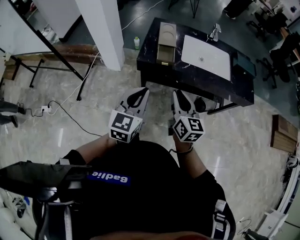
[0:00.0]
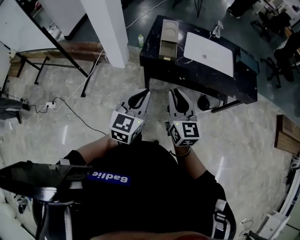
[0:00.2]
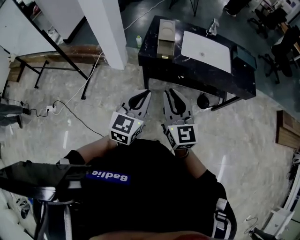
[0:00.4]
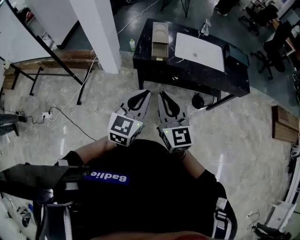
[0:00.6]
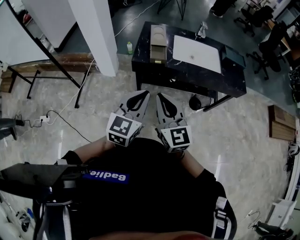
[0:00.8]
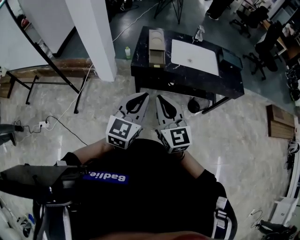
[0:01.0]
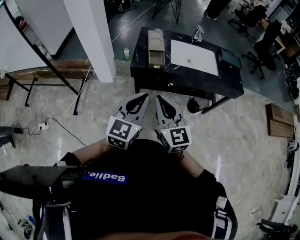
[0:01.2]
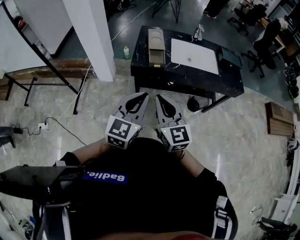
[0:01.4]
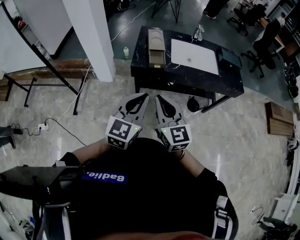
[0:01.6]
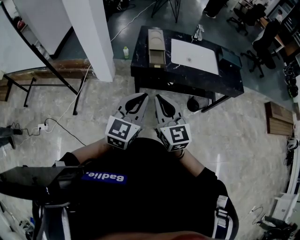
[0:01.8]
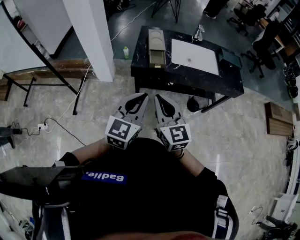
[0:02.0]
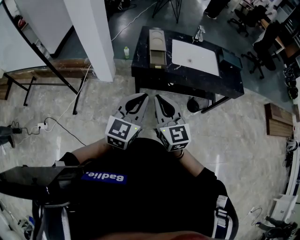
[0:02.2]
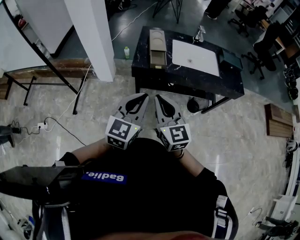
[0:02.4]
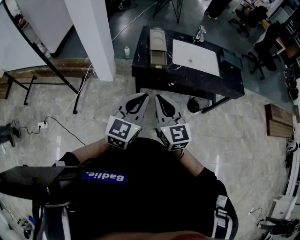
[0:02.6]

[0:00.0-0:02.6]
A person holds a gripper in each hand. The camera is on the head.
0:00.0 to 0:01.2: The right gripper shifts about 15 cm backward, upward and to the left. The left gripper travels backward and upward by roughly 10 cm.
0:01.2 to 0:02.6: The grippers make only small movements.

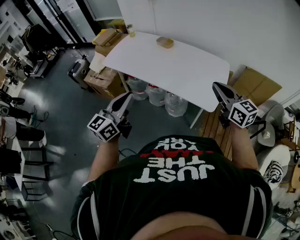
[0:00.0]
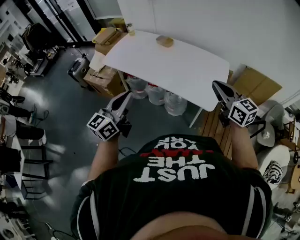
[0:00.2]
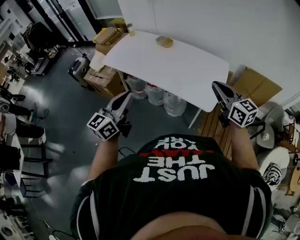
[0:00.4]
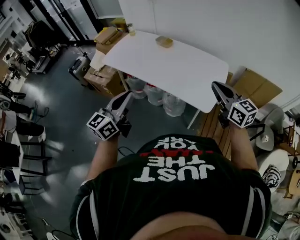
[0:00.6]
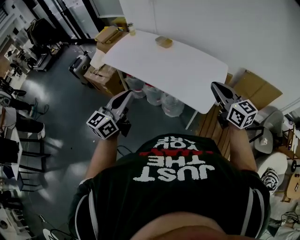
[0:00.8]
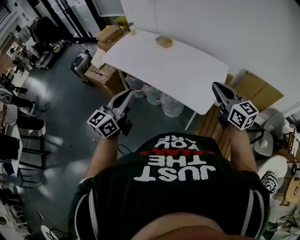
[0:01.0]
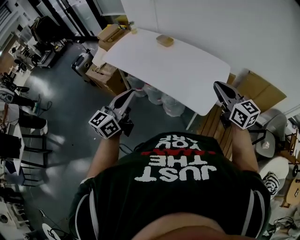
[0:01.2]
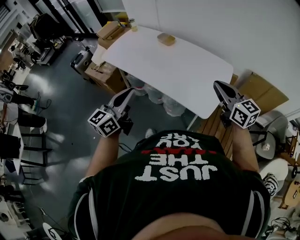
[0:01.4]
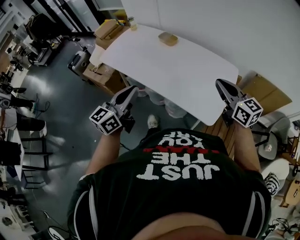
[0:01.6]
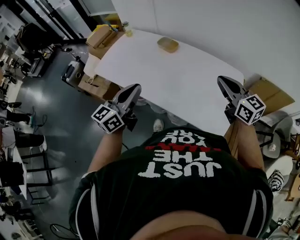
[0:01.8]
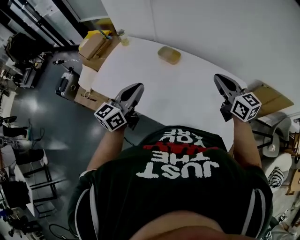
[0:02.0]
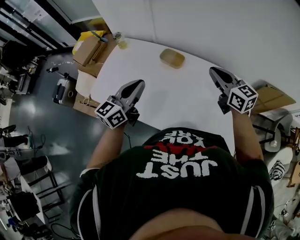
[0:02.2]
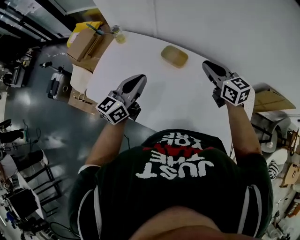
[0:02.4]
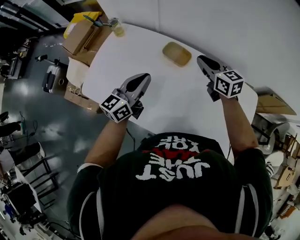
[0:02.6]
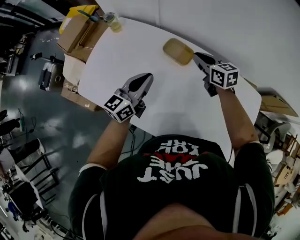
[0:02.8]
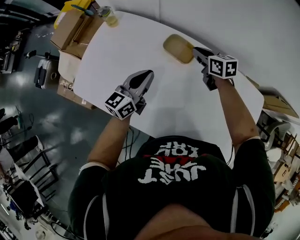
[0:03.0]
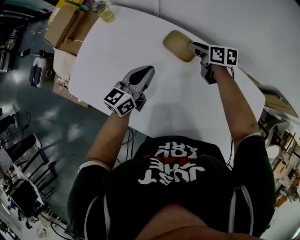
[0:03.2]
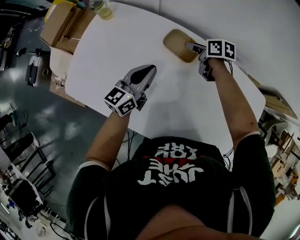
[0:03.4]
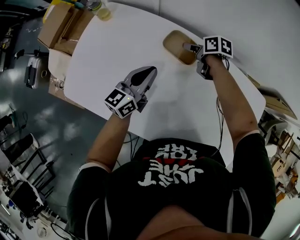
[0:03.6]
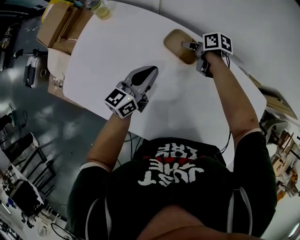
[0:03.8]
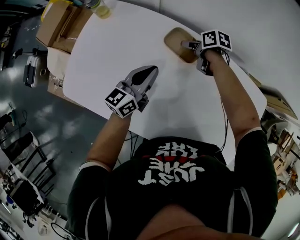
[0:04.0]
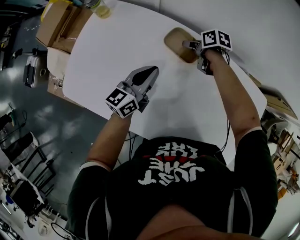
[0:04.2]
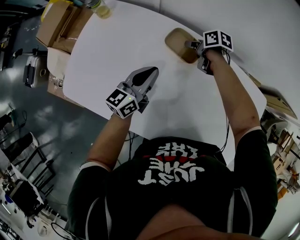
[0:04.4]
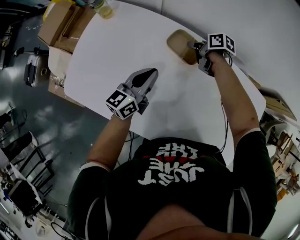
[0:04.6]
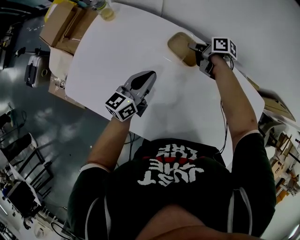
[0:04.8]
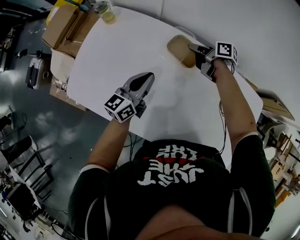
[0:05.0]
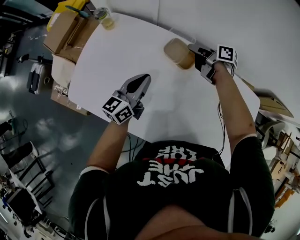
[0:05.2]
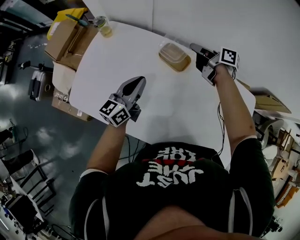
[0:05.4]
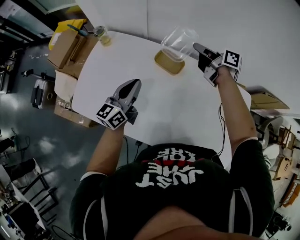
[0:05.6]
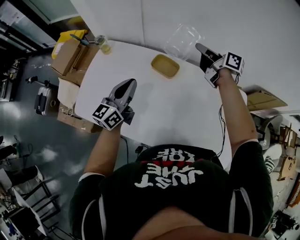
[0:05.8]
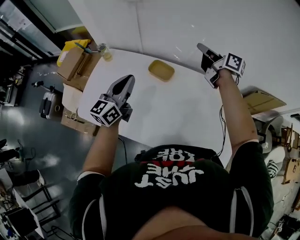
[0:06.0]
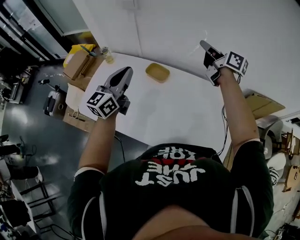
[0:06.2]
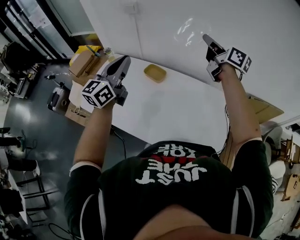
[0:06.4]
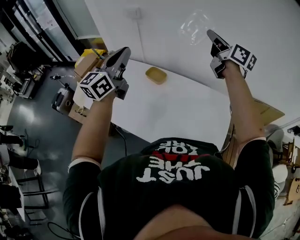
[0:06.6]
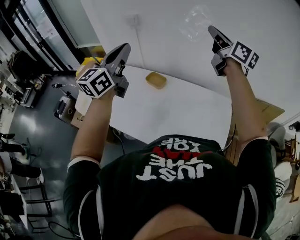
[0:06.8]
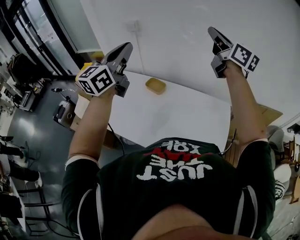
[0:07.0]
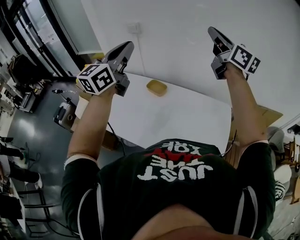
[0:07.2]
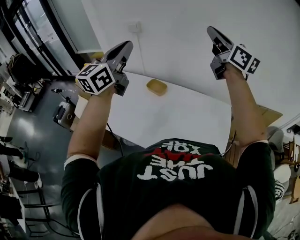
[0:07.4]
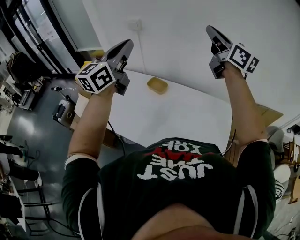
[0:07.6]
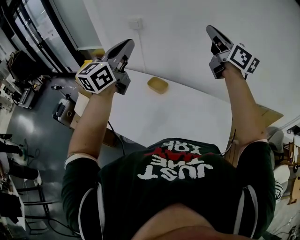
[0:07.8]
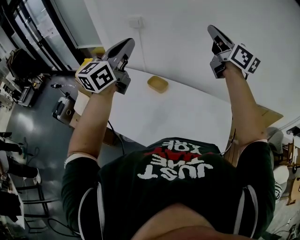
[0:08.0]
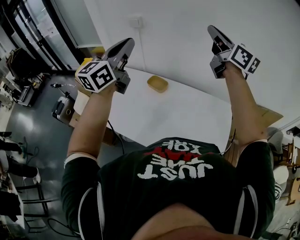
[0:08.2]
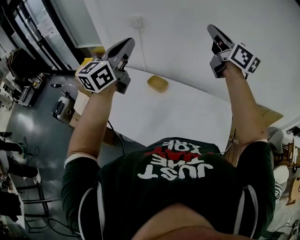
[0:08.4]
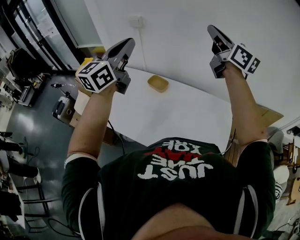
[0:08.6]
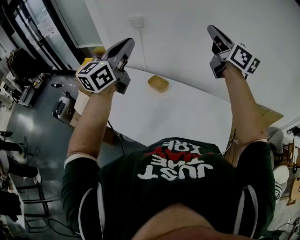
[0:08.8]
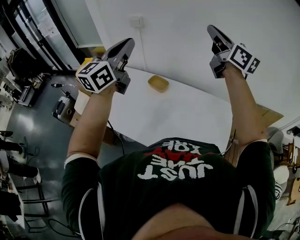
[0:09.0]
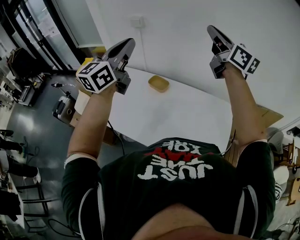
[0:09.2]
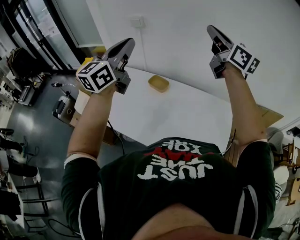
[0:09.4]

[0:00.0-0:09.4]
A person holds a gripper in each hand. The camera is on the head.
0:00.0 to 0:01.6: The right gripper travels forward by approximately 15 cm; the left gripper moves forward and to the right, roughly 15 cm.
0:01.6 to 0:03.2: The pair of grippers is taken forward, approximately 60 cm. The grippers both shift downward by some 30 cm. The right gripper points its fingers approximately 30 degrees further downward, and opens up.
0:03.2 to 0:04.8: The right gripper changes its angle by approximately 30 degrees, and closes.
0:04.8 to 0:06.2: The two grippers go approximately 35 cm upward. The right gripper angles its fingers upward, by approximately 40 degrees. The left gripper turns by approximately 20 degrees.
0:06.2 to 0:07.8: The right gripper travels upward and backward by about 25 cm, and rotates roughly 30 degrees, while the left gripper goes about 20 cm upward.
0:07.8 to 0:09.4: Both grippers stay put.

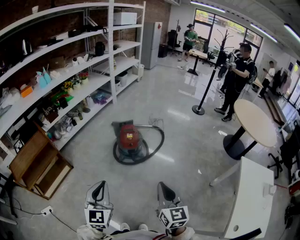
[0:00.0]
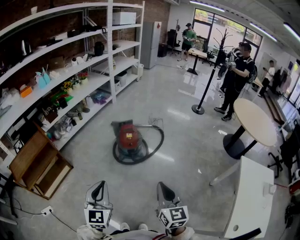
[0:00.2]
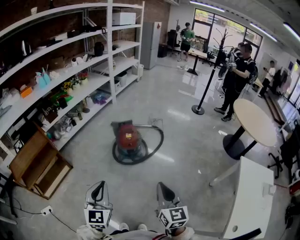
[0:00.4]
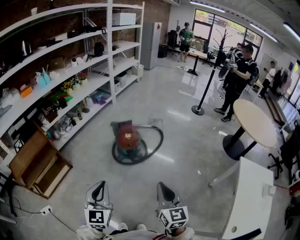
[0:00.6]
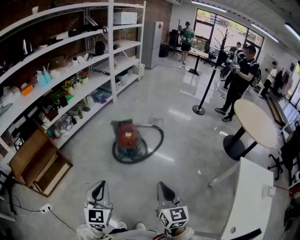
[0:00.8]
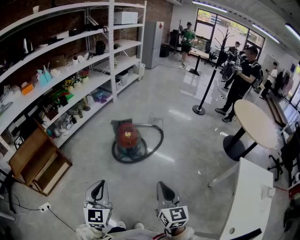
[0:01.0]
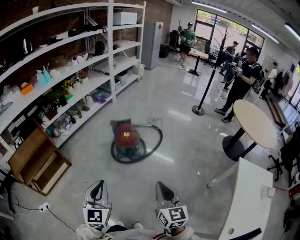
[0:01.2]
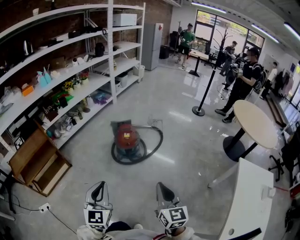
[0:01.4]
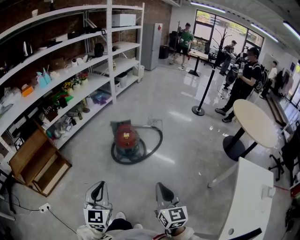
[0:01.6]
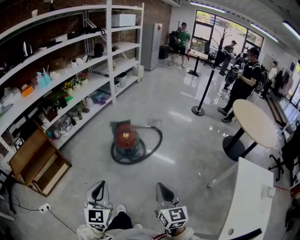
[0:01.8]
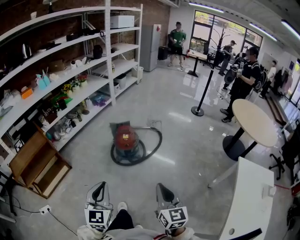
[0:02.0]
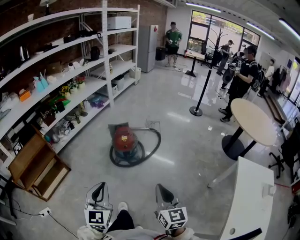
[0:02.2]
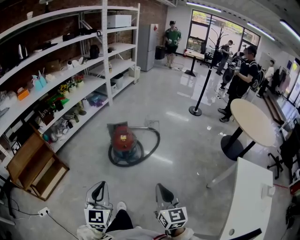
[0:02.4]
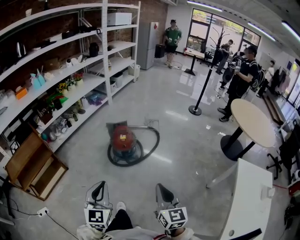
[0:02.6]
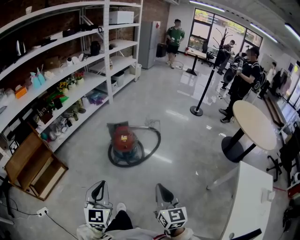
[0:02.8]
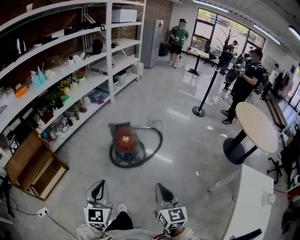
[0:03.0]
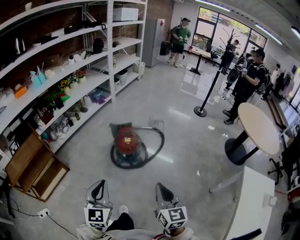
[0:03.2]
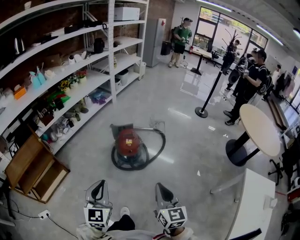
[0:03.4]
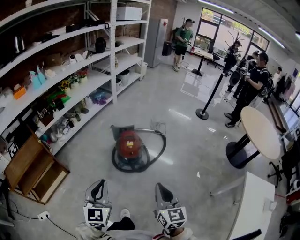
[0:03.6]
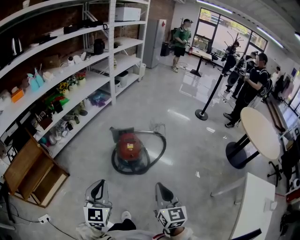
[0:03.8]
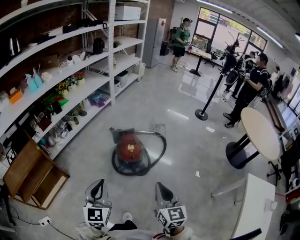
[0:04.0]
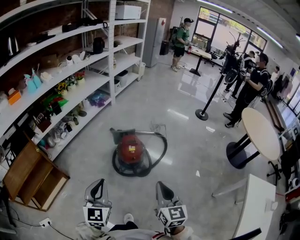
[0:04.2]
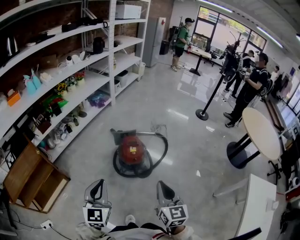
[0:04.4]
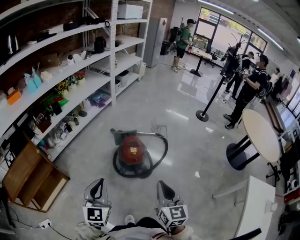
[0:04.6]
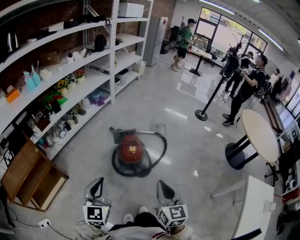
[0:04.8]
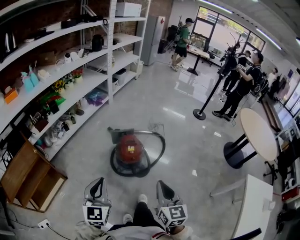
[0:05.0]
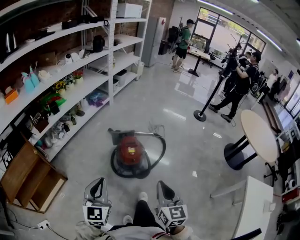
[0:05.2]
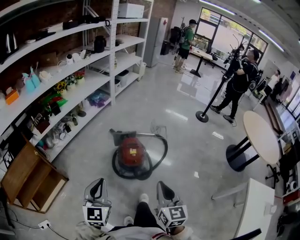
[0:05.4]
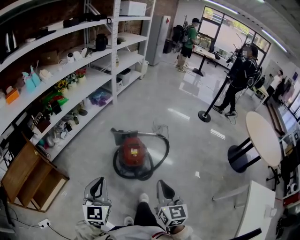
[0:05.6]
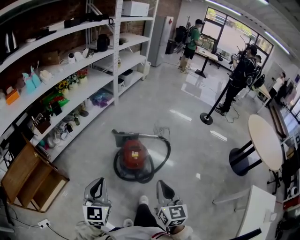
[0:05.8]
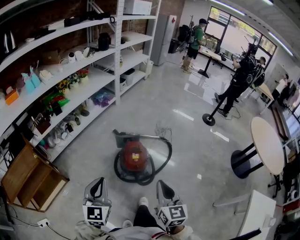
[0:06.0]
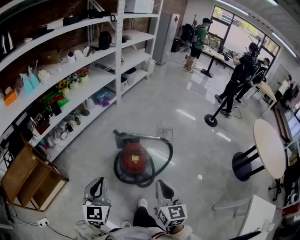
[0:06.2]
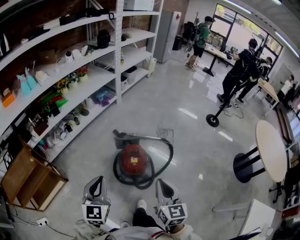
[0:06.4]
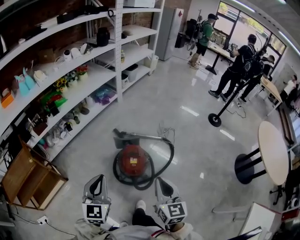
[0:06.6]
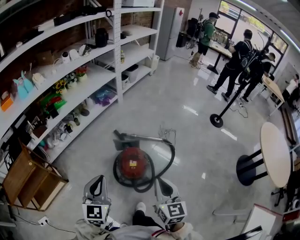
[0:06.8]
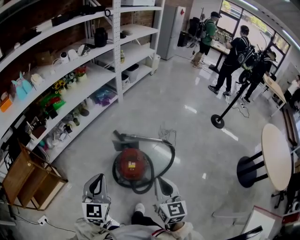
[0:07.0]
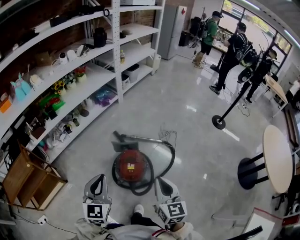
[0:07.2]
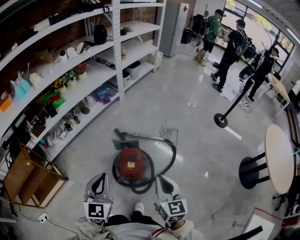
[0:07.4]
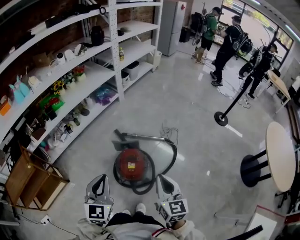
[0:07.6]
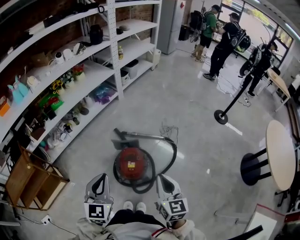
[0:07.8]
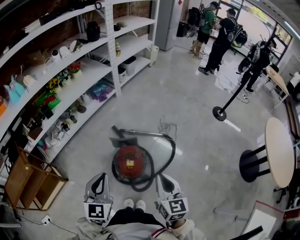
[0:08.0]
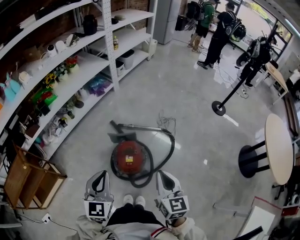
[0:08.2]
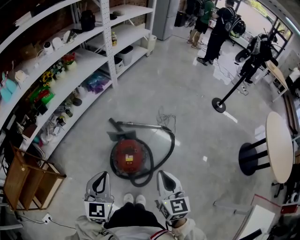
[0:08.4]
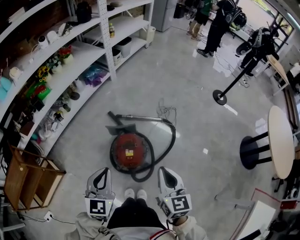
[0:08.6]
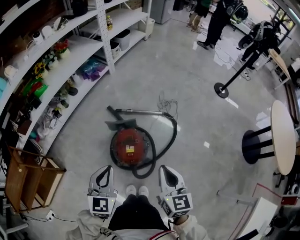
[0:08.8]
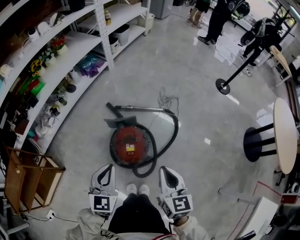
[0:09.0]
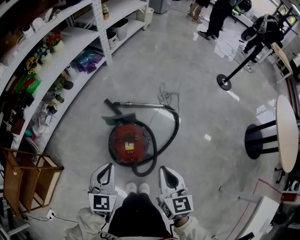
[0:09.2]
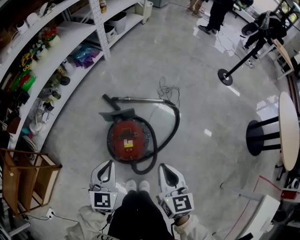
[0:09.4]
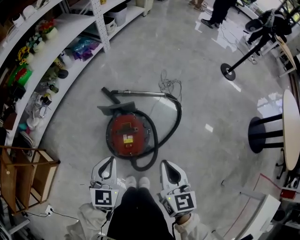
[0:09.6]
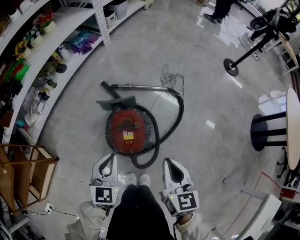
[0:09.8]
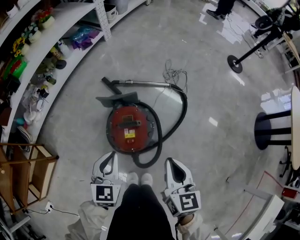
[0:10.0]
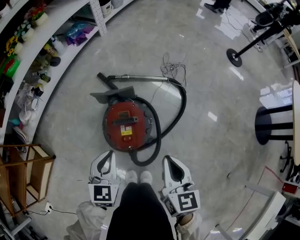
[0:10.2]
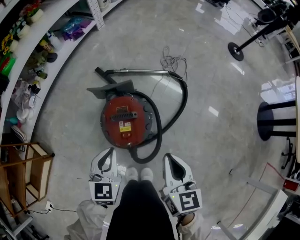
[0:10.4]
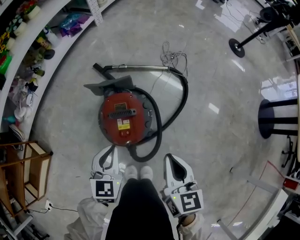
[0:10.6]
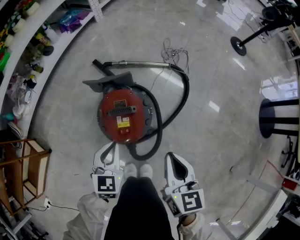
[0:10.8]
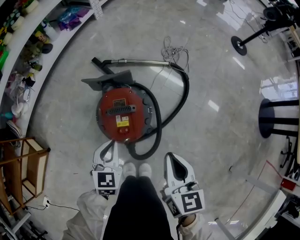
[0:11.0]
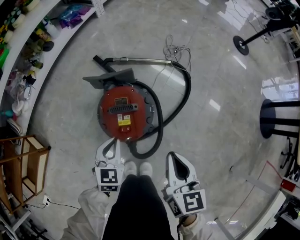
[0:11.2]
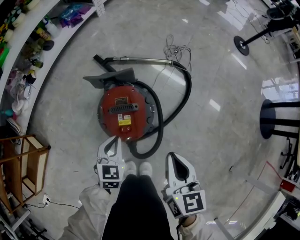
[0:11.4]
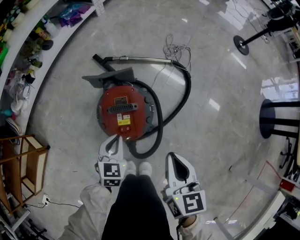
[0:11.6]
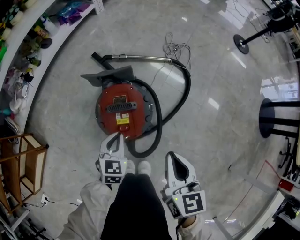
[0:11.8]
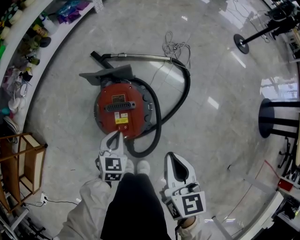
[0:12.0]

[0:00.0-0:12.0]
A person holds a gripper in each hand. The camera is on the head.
0:00.0 to 0:01.6: The right gripper changes place by approximately 5 cm, while the left gripper ends up roughly 5 cm from where it was.
0:01.6 to 0:03.0: The grippers both shift forward by roughly 10 cm.
0:03.0 to 0:04.4: Both grippers travel together forward and to the left, some 15 cm.
0:04.4 to 0:06.0: The grippers both shift forward by some 10 cm.
0:06.0 to 0:07.6: The grippers both shift forward and to the right by roughly 20 cm.
0:07.6 to 0:09.0: The two grippers go approximately 10 cm downward.
0:09.0 to 0:10.4: The two grippers go some 20 cm downward.
0:10.4 to 0:12.0: The left gripper is displaced downward by approximately 15 cm.
